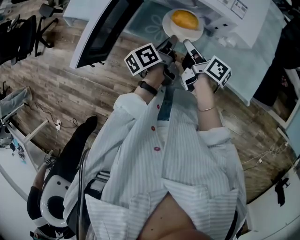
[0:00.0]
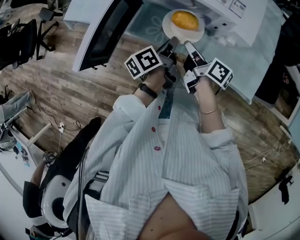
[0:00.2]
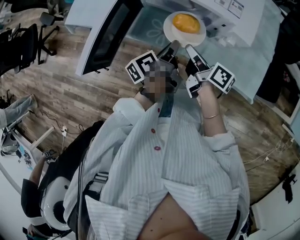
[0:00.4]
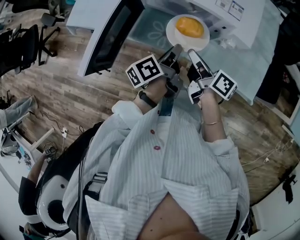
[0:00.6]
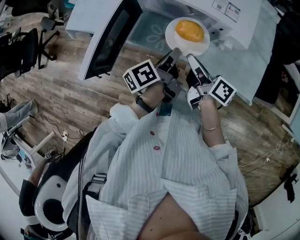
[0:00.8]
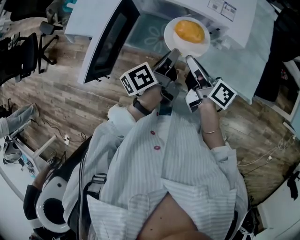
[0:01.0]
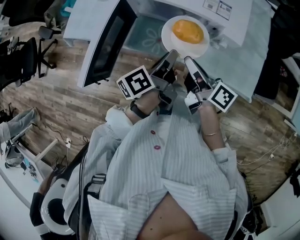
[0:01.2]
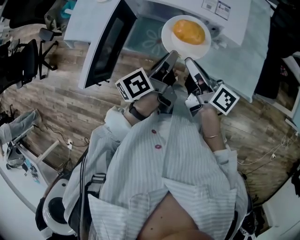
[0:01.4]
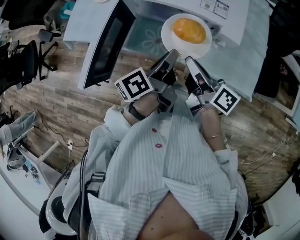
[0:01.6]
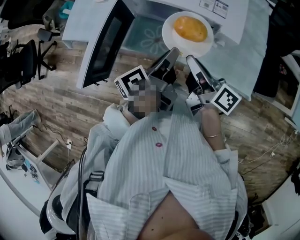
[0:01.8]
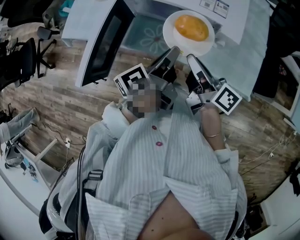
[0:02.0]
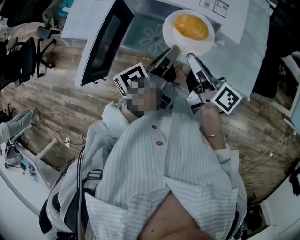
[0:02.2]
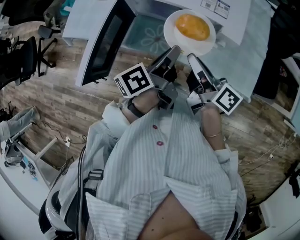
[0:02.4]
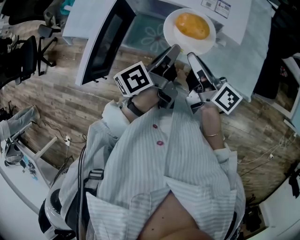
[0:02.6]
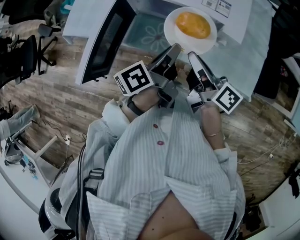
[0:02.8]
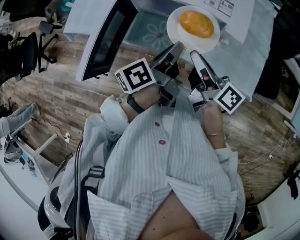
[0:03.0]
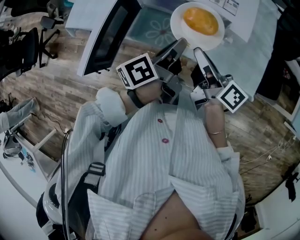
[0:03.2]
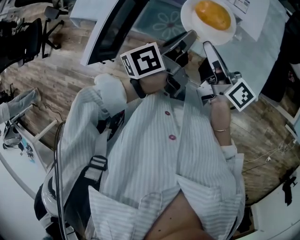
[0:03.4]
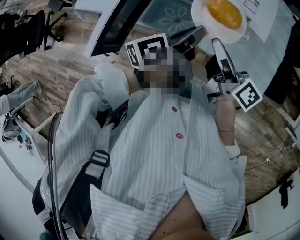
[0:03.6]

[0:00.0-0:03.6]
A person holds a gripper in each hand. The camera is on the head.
0:00.0 to 0:01.8: Both grippers move upward, approximately 15 cm.
0:01.8 to 0:03.6: There are only small adjustments of the grippers.

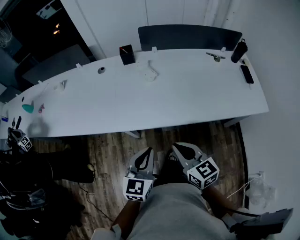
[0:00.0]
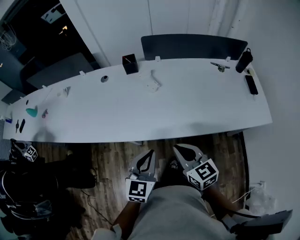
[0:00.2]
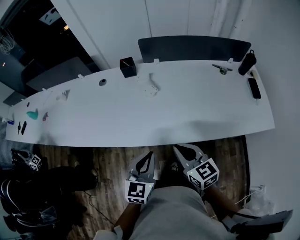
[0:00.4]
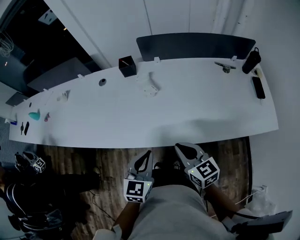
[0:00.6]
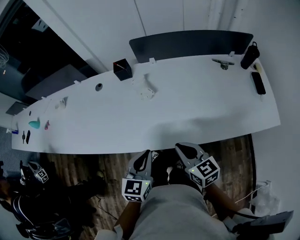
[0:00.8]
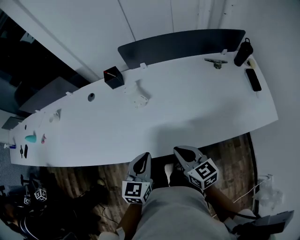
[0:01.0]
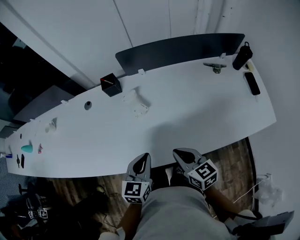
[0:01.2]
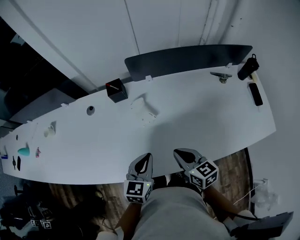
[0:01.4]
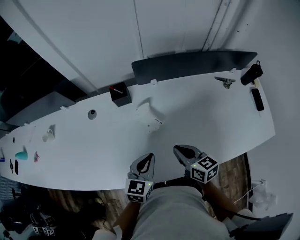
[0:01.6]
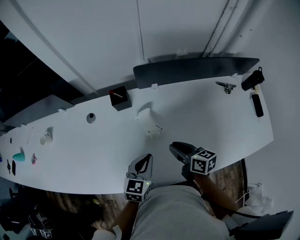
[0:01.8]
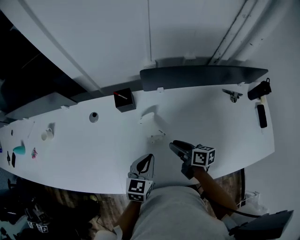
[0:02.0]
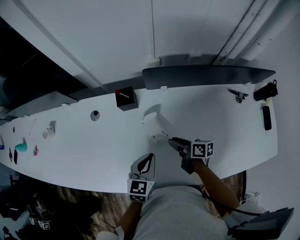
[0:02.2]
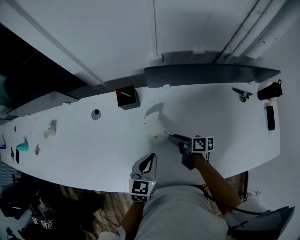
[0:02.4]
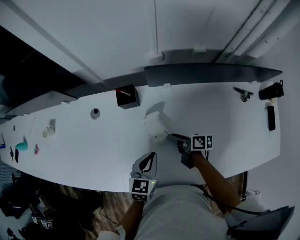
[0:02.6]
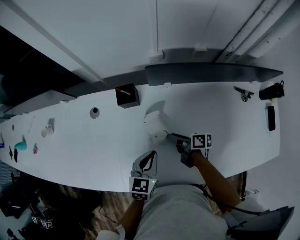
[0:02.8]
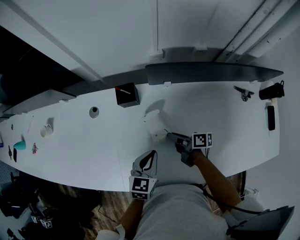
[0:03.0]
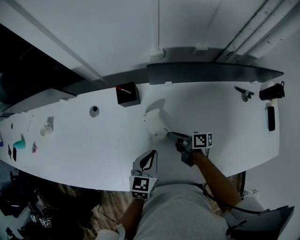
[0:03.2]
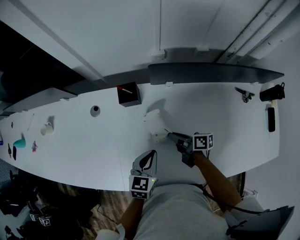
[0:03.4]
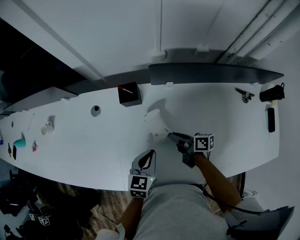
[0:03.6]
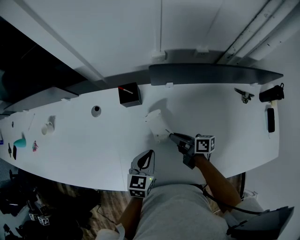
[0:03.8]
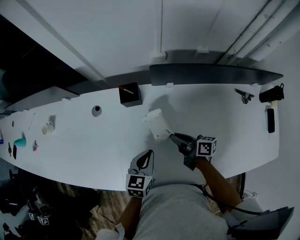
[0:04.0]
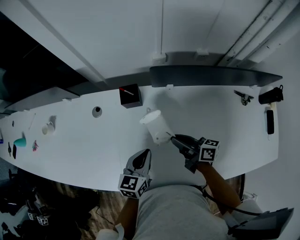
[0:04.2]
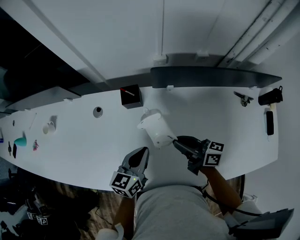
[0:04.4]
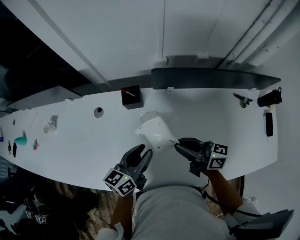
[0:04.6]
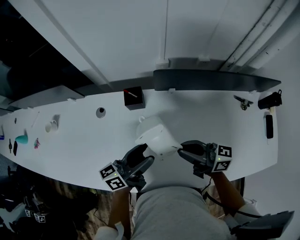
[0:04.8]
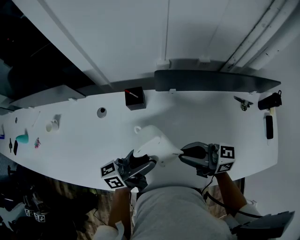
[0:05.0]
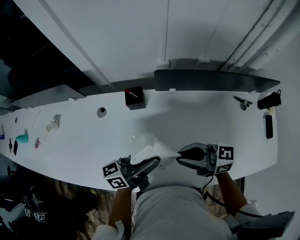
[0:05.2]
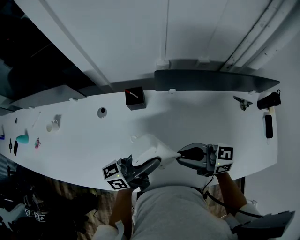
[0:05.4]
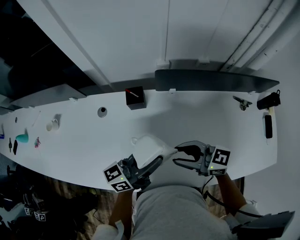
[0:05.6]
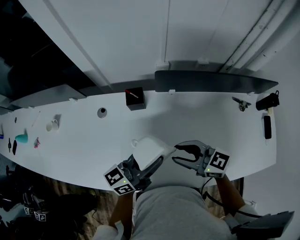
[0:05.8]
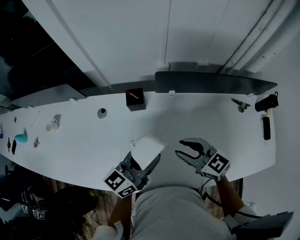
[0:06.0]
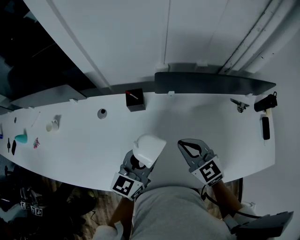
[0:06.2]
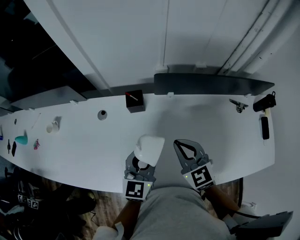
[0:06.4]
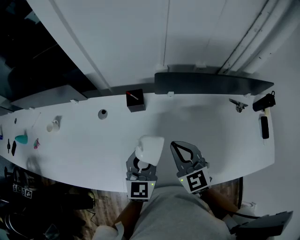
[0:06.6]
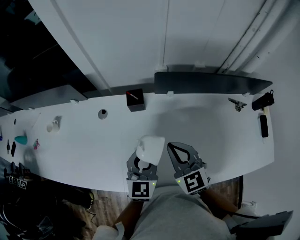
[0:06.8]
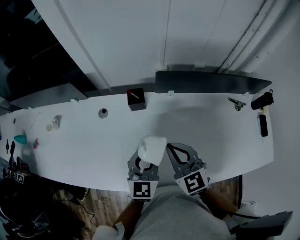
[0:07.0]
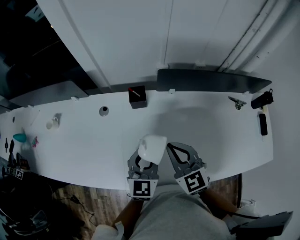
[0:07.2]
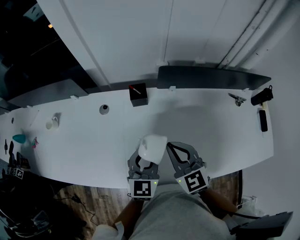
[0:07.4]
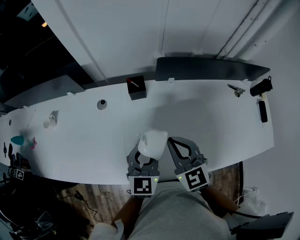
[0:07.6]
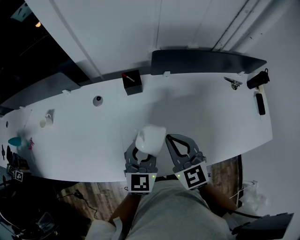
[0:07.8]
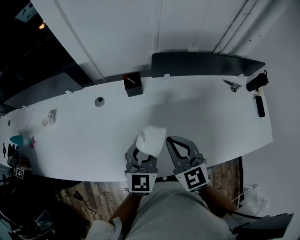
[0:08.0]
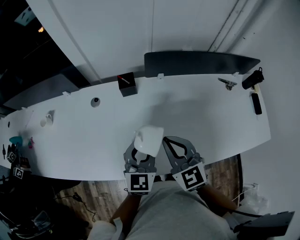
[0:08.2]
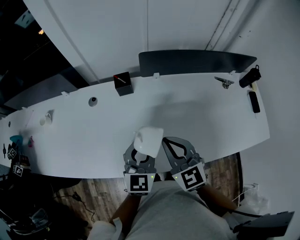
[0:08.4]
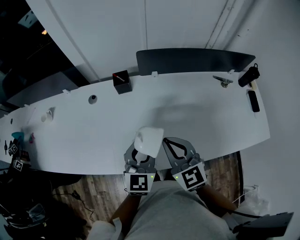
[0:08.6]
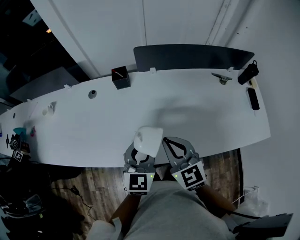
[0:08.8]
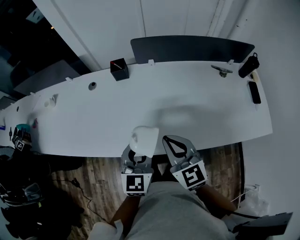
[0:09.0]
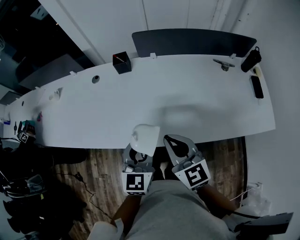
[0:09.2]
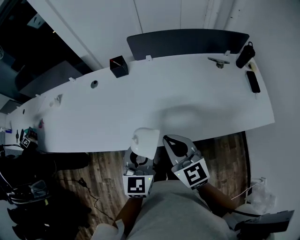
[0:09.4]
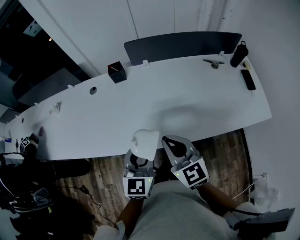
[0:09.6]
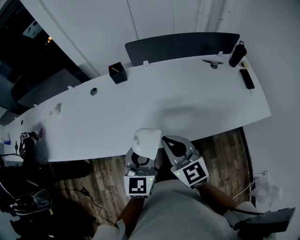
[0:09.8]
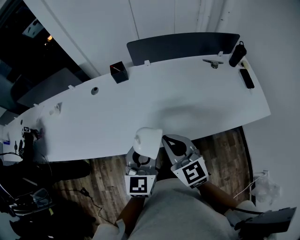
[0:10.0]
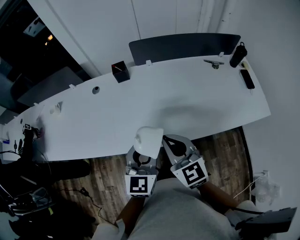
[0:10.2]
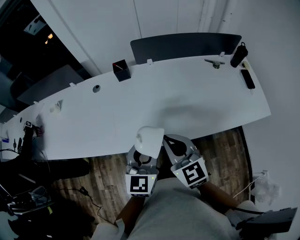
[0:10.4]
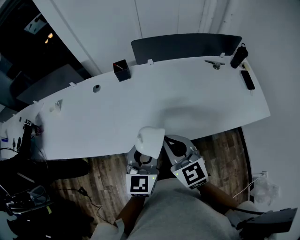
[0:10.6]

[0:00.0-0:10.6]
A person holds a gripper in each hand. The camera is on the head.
0:00.0 to 0:01.6: Both grippers move forward, roughly 30 cm.
0:01.6 to 0:03.0: The right gripper shifts roughly 20 cm forward and downward, rolls clockwise, seen from behind, by some 40 degrees, and opens its fingers, while the left gripper moves forward, approximately 10 cm.
0:03.0 to 0:04.6: The left gripper goes about 5 cm upward, and changes its angle by some 30 degrees; the right gripper goes approximately 20 cm upward, and turns by approximately 40 degrees.
0:04.6 to 0:06.0: The right gripper swivels about 40 degrees, and opens its fingers. The left gripper goes roughly 10 cm upward, and opens, then closes again.
0:06.0 to 0:07.6: The left gripper ends up some 5 cm from where it was, and turns by roughly 40 degrees; the right gripper is displaced to the left by approximately 10 cm, swivels some 30 degrees, and closes its fingers.
0:07.6 to 0:09.0: Both grippers travel together backward and to the right, some 20 cm.
0:09.0 to 0:10.6: The right gripper travels backward and to the left by about 10 cm, while the left gripper heads backward, covering about 5 cm.

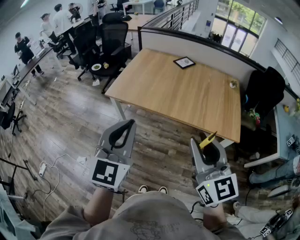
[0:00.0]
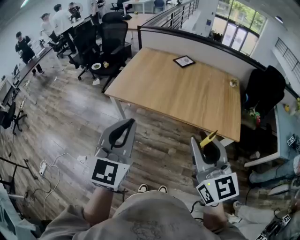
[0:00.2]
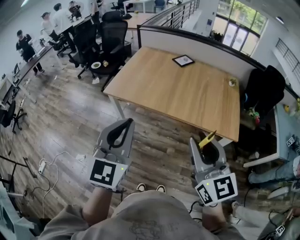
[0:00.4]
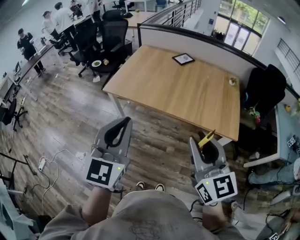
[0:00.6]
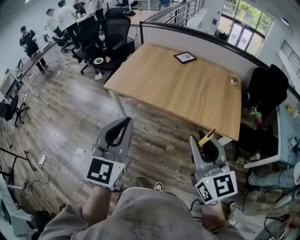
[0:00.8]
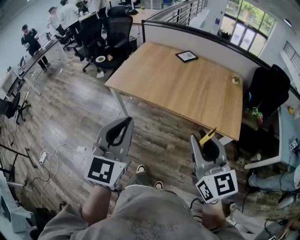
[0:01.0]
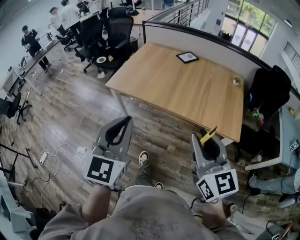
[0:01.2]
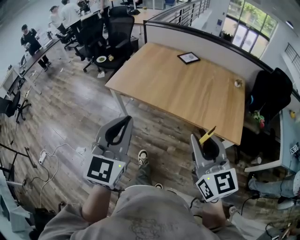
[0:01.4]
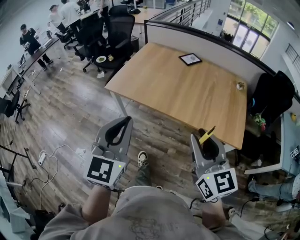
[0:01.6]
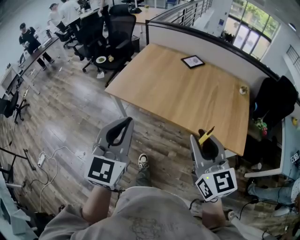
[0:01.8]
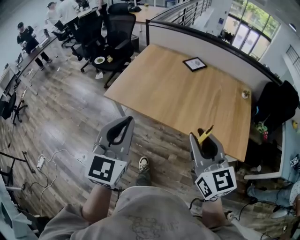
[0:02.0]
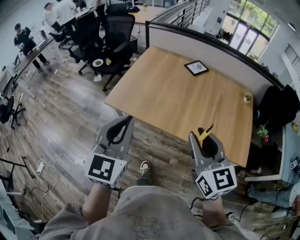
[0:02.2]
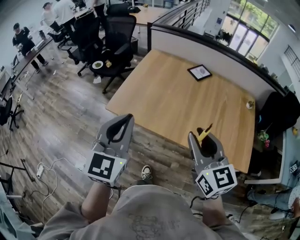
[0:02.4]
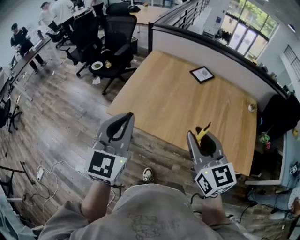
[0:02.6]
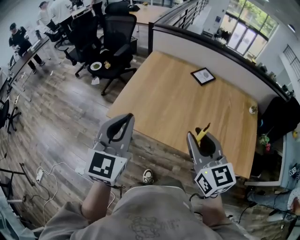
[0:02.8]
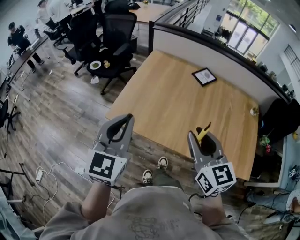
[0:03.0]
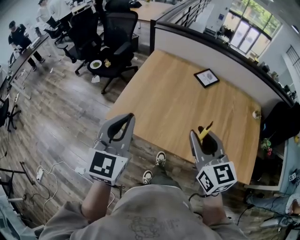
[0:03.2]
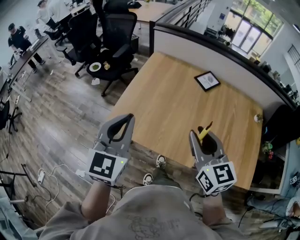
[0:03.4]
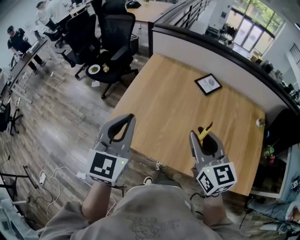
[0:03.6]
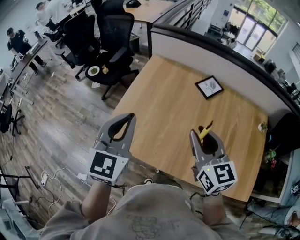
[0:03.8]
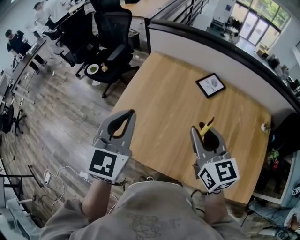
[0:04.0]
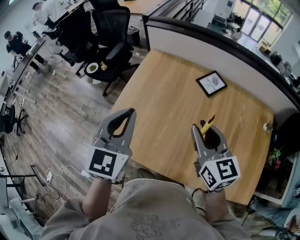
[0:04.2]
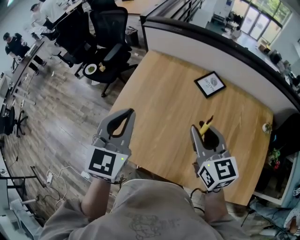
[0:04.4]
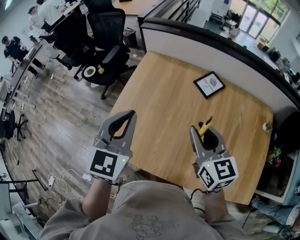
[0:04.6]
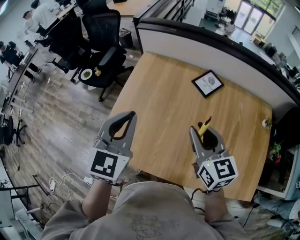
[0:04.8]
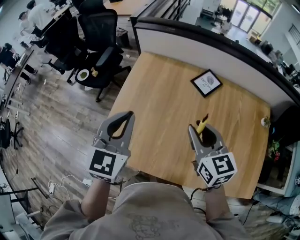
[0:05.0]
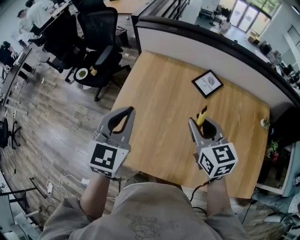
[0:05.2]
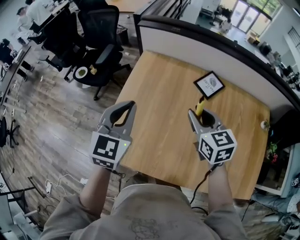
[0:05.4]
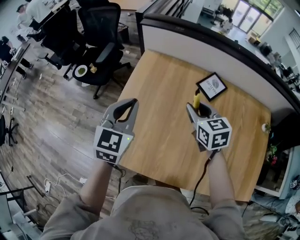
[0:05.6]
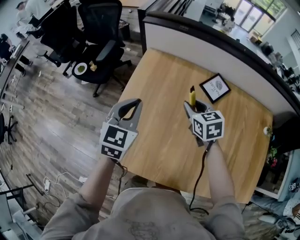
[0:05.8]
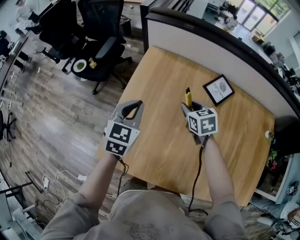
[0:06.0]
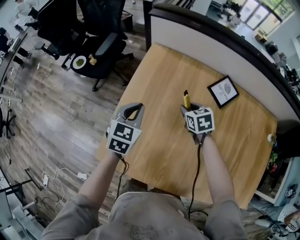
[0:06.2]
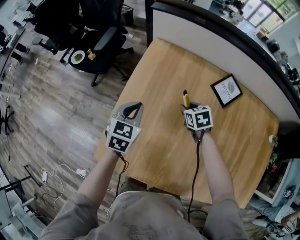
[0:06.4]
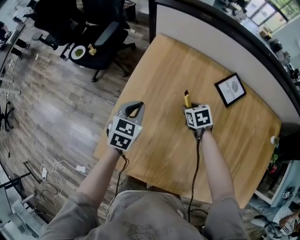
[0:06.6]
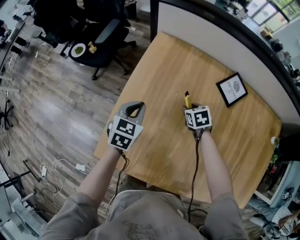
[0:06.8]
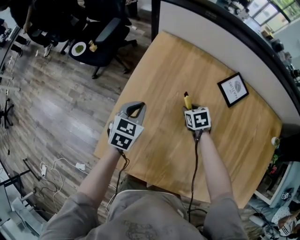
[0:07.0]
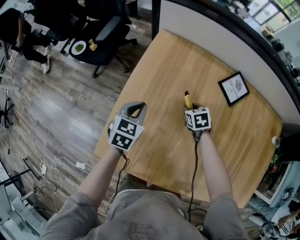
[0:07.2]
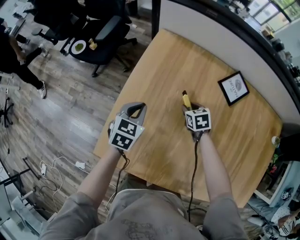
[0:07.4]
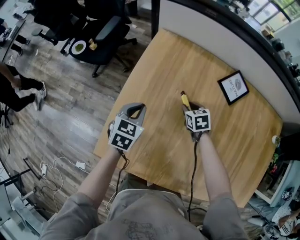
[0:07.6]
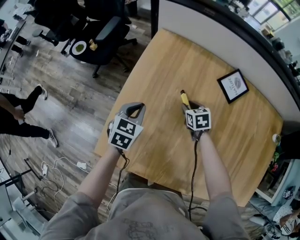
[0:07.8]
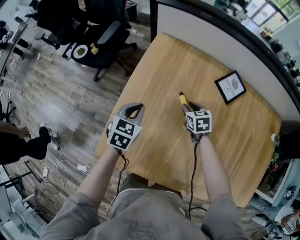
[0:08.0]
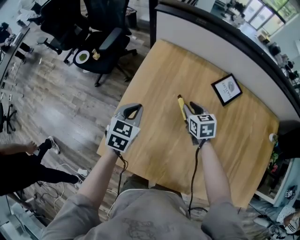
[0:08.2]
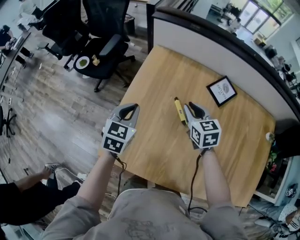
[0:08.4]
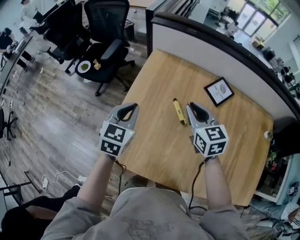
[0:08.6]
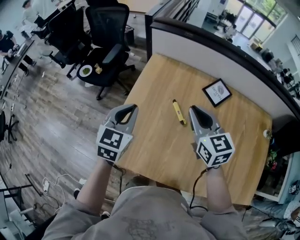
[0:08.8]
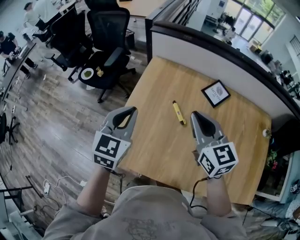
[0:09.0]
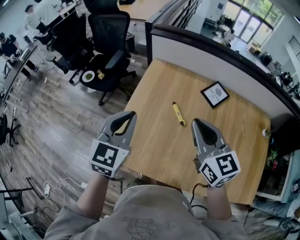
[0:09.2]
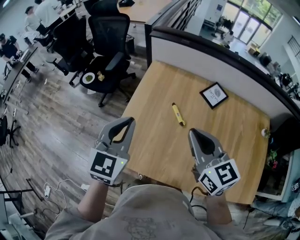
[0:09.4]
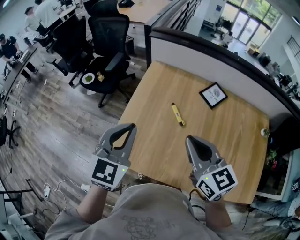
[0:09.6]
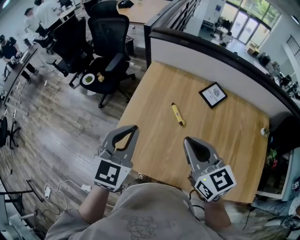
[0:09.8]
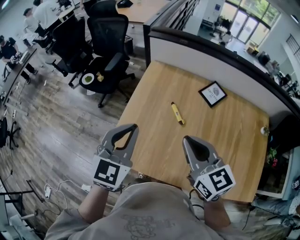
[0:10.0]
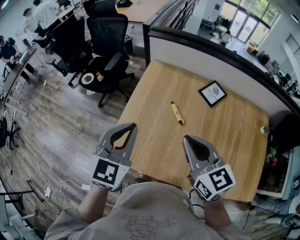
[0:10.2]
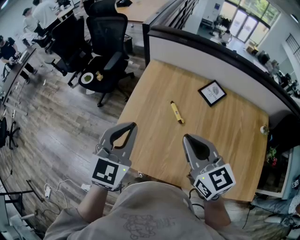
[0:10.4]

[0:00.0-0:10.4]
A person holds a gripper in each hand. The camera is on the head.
0:00.0 to 0:01.4: The right gripper travels to the right by roughly 5 cm. Meanwhile the left gripper moves approximately 5 cm.
0:01.4 to 0:03.0: The pair of grippers is taken forward and to the left, about 40 cm.
0:03.0 to 0:04.4: The right gripper travels forward by some 25 cm. Meanwhile the left gripper is displaced forward and to the right by approximately 25 cm.
0:04.4 to 0:06.0: Both grippers move forward and downward, some 30 cm. The right gripper angles its fingers downward, by some 30 degrees.
0:06.0 to 0:07.4: The two grippers go about 15 cm downward.
0:07.4 to 0:09.0: The right gripper is displaced upward by roughly 40 cm, points its fingers roughly 40 degrees further upward, and closes; the left gripper moves upward, some 25 cm, and turns by some 20 degrees.
0:09.0 to 0:10.4: Both grippers travel together backward, approximately 10 cm.
